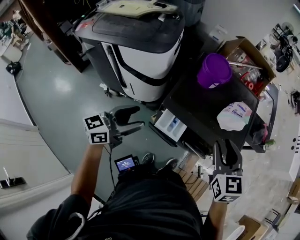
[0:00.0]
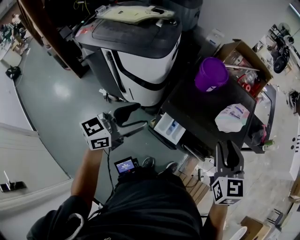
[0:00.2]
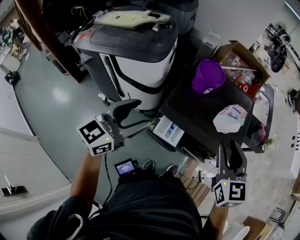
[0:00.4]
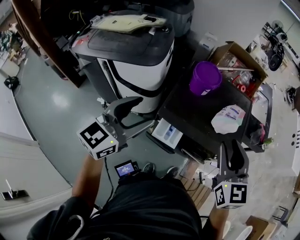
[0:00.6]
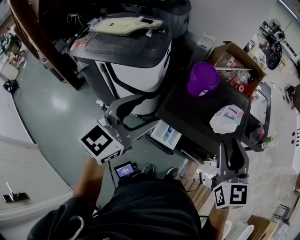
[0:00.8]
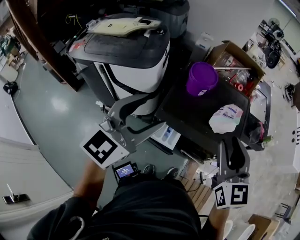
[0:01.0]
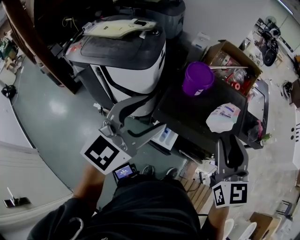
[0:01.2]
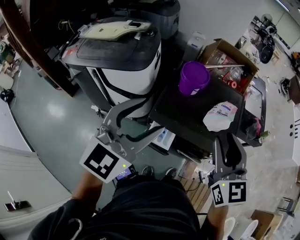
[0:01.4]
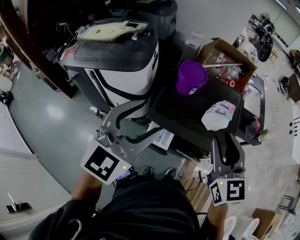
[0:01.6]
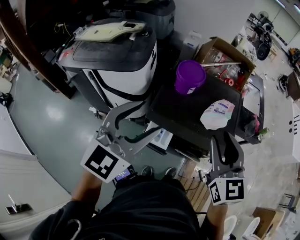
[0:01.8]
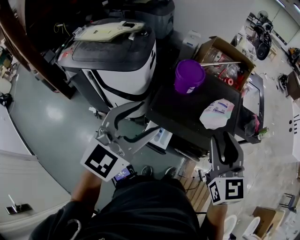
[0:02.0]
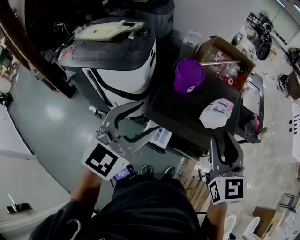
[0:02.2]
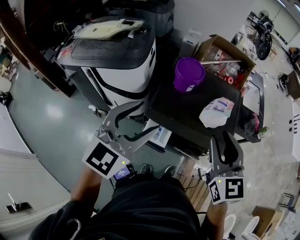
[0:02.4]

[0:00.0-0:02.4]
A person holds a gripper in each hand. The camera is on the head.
0.0 to 1.2 s: The left gripper goes some 20 cm upward and to the right, and rotates roughly 40 degrees; the right gripper shifts about 10 cm upward.
1.2 to 2.4 s: The grippers move only a little.

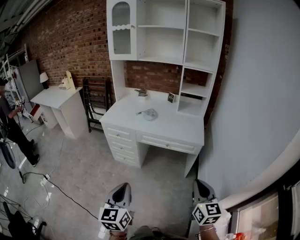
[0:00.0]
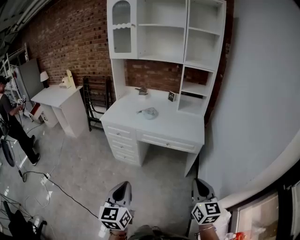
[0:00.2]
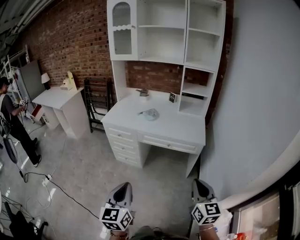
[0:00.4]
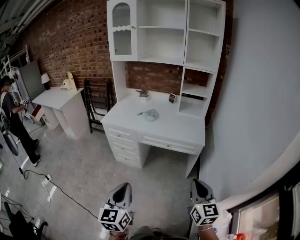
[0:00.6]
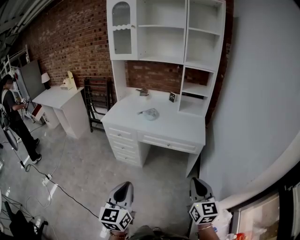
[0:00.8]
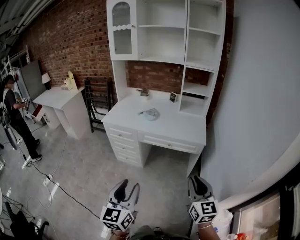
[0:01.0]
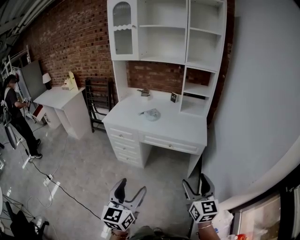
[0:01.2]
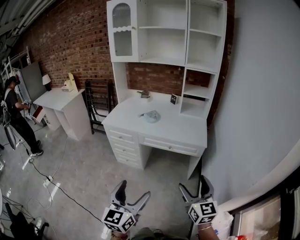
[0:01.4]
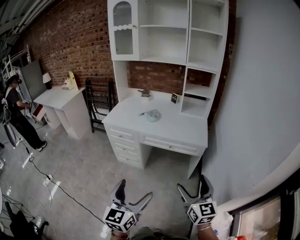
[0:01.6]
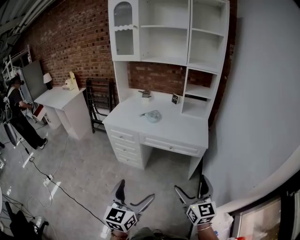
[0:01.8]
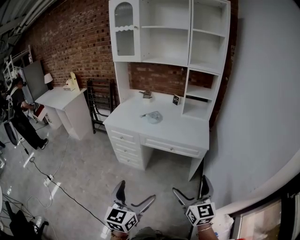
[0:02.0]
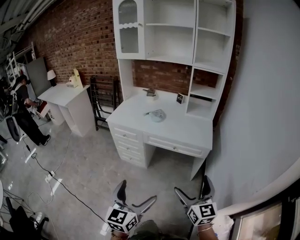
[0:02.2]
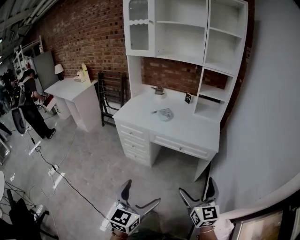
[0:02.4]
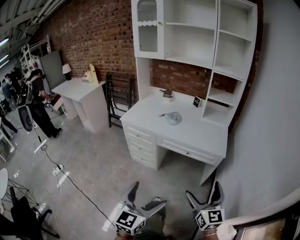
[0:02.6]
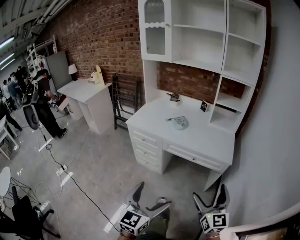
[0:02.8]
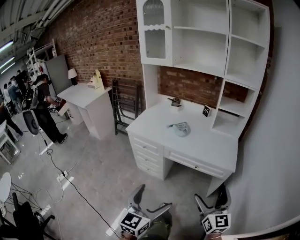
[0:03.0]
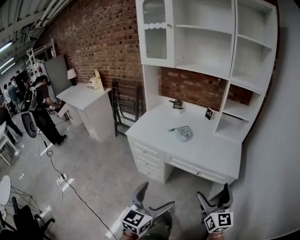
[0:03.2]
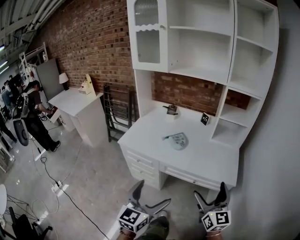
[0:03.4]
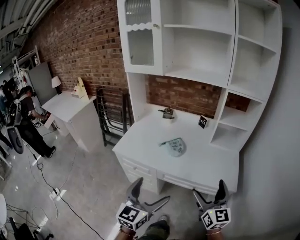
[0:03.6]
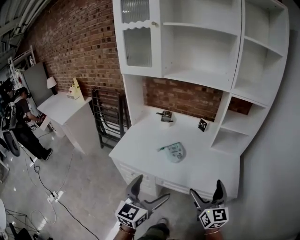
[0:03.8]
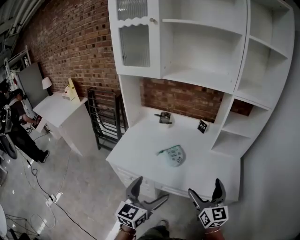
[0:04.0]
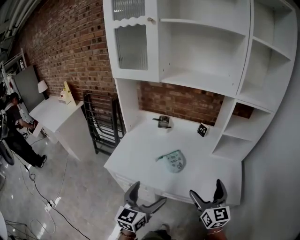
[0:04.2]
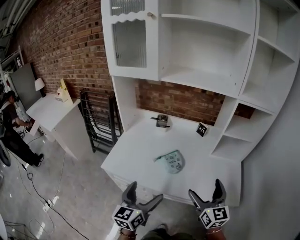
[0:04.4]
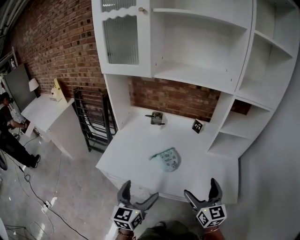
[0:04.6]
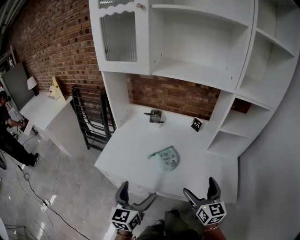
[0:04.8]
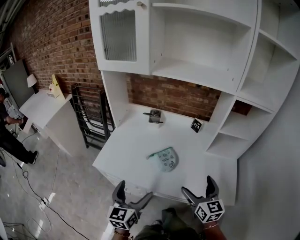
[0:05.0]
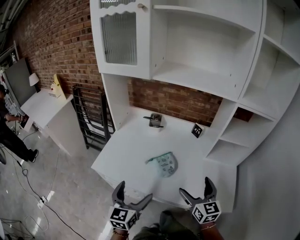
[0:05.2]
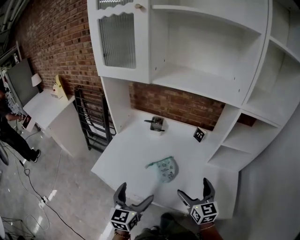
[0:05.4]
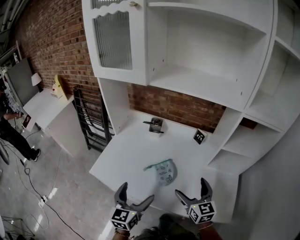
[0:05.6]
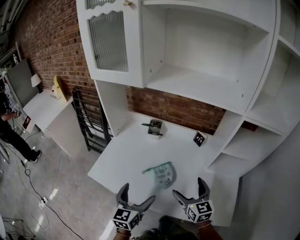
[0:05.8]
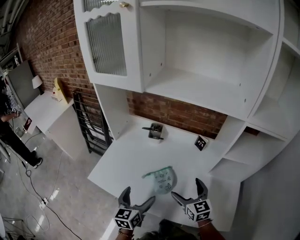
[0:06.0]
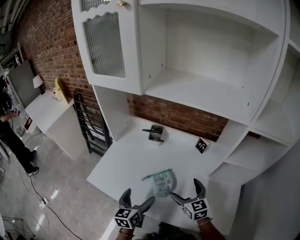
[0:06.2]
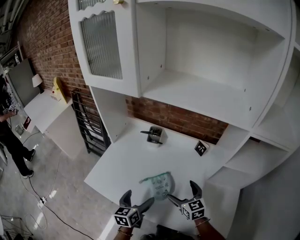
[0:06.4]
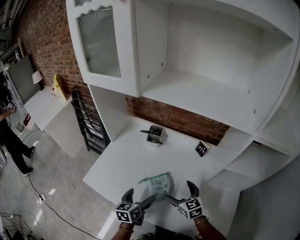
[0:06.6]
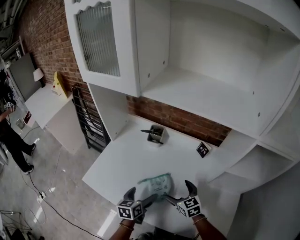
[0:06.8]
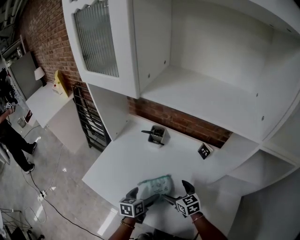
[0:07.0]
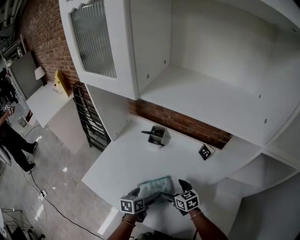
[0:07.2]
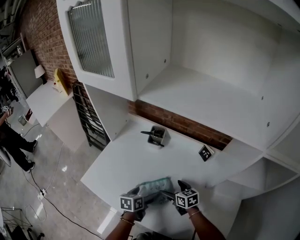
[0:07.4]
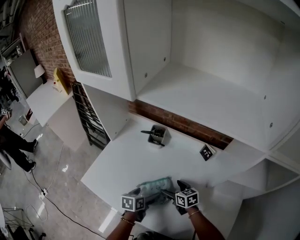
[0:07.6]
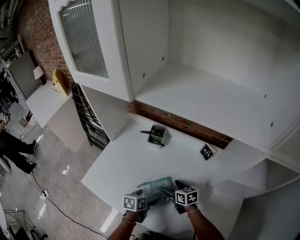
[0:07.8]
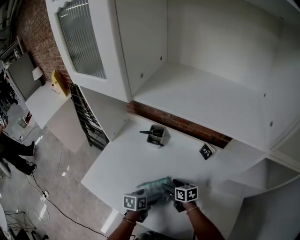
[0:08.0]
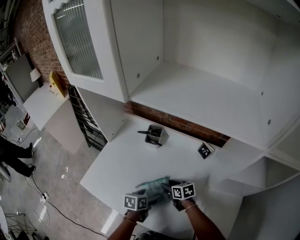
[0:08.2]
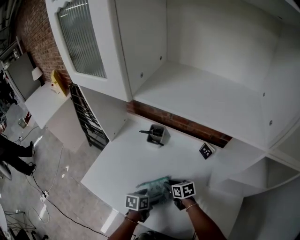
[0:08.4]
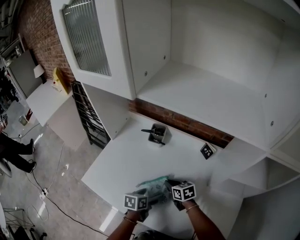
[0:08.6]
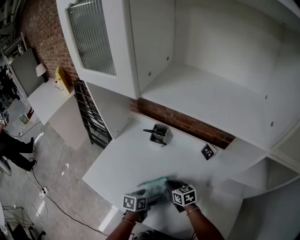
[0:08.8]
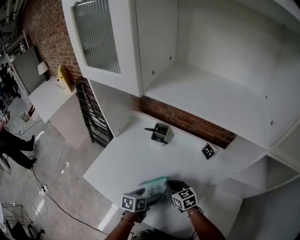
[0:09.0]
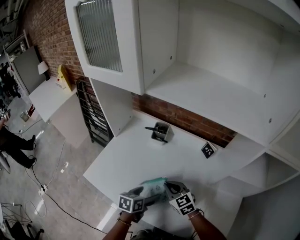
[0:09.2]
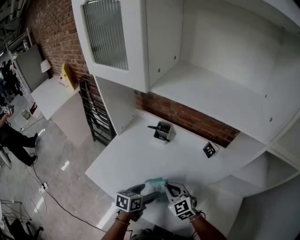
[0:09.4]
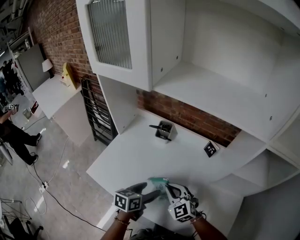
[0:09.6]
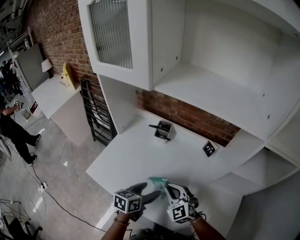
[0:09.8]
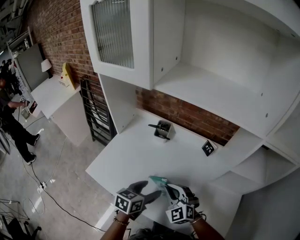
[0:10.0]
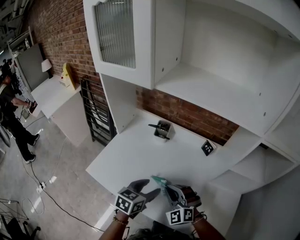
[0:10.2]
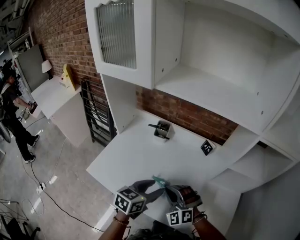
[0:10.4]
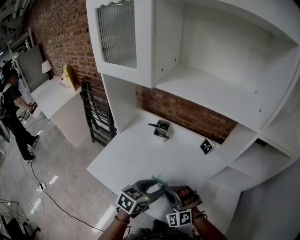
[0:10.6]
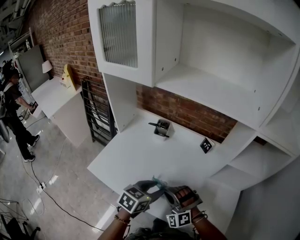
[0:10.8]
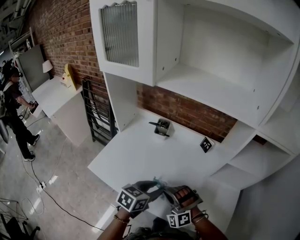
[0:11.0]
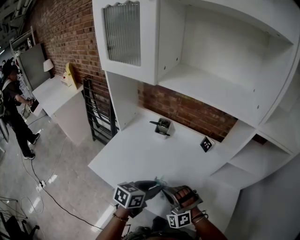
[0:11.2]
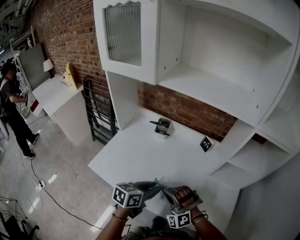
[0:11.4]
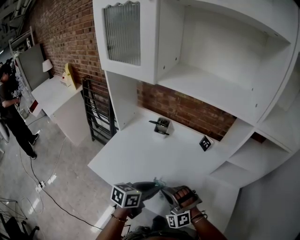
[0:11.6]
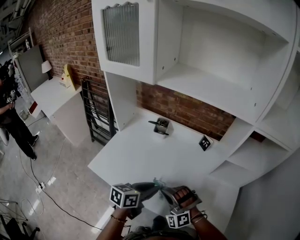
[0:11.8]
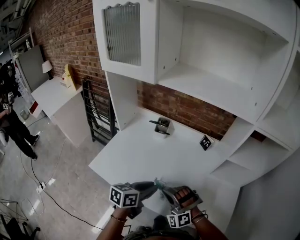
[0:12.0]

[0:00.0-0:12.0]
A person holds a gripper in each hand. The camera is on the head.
0.0 to 1.6 s: The left gripper shifts by roughly 5 cm, and opens up; the right gripper opens.
1.6 to 3.0 s: The two grippers go approximately 15 cm forward.
3.0 to 4.4 s: The grippers both shift forward by approximately 40 cm.
4.4 to 6.0 s: The two grippers go some 20 cm forward and downward. The right gripper turns by about 20 degrees.
6.0 to 7.6 s: The left gripper is displaced downward, forward and to the right by approximately 20 cm, and changes its angle by some 30 degrees. The right gripper shifts approximately 20 cm downward and forward, and rotates about 30 degrees.
7.6 to 9.0 s: The right gripper shifts by some 5 cm, and closes its fingers.
9.0 to 10.4 s: The right gripper heads backward and upward, covering some 15 cm, and twists approximately 70 degrees counterclockwise, seen from behind, while the left gripper moves upward, about 15 cm, rotates approximately 30 degrees, and closes its fingers.
10.4 to 12.0 s: The right gripper moves backward, approximately 5 cm.

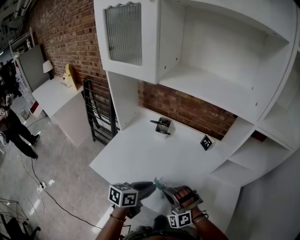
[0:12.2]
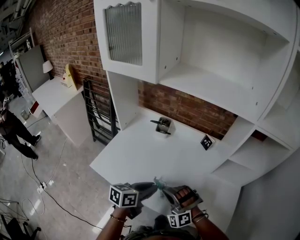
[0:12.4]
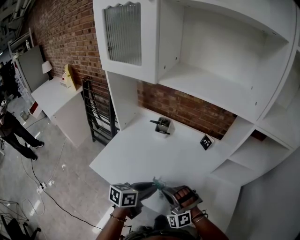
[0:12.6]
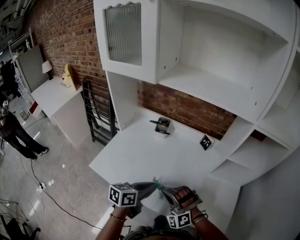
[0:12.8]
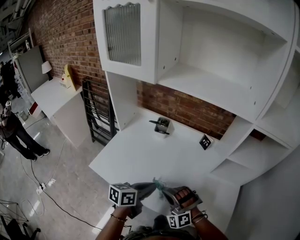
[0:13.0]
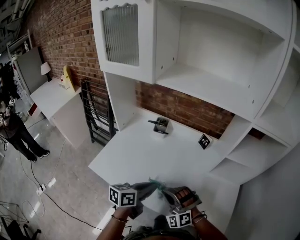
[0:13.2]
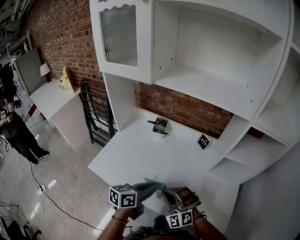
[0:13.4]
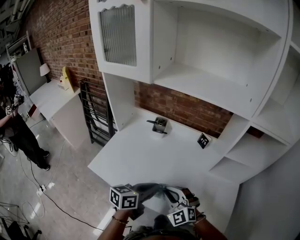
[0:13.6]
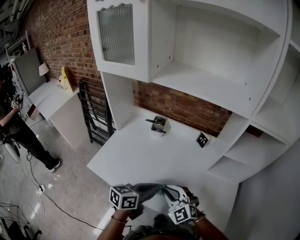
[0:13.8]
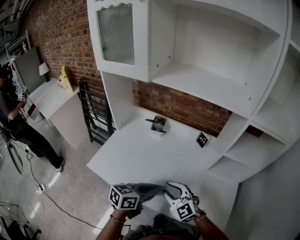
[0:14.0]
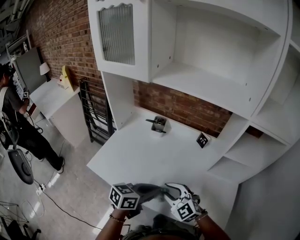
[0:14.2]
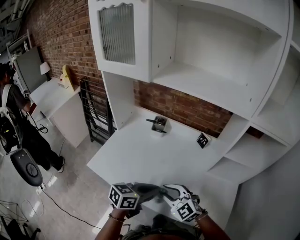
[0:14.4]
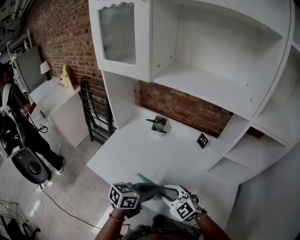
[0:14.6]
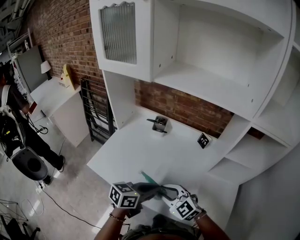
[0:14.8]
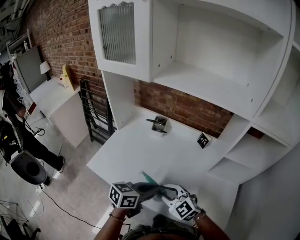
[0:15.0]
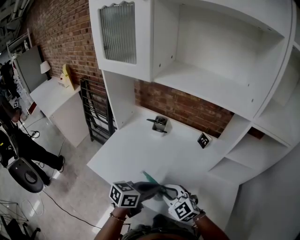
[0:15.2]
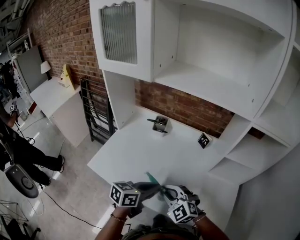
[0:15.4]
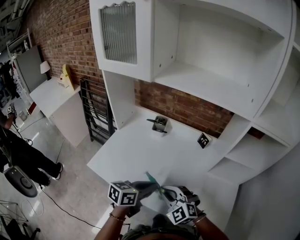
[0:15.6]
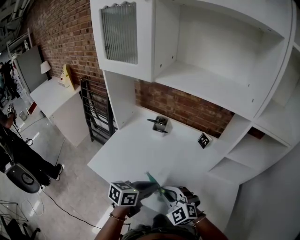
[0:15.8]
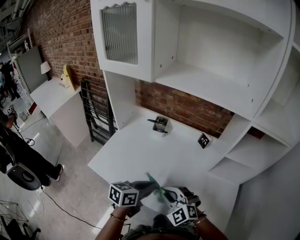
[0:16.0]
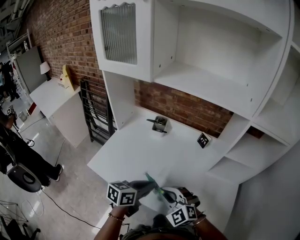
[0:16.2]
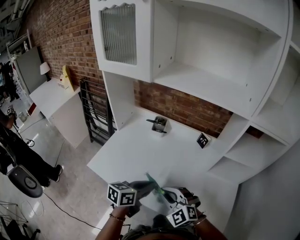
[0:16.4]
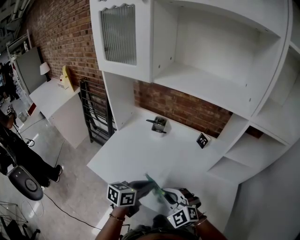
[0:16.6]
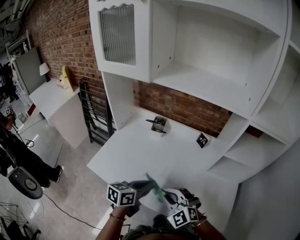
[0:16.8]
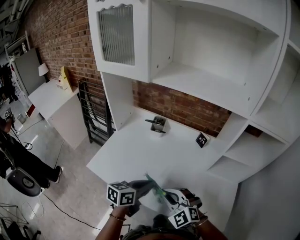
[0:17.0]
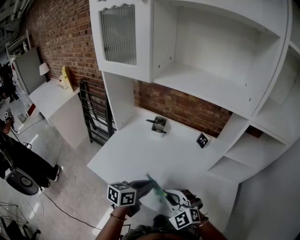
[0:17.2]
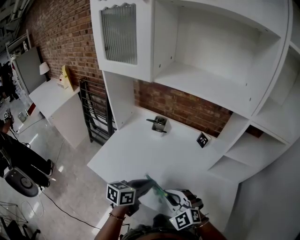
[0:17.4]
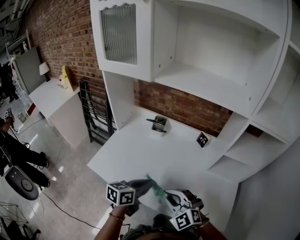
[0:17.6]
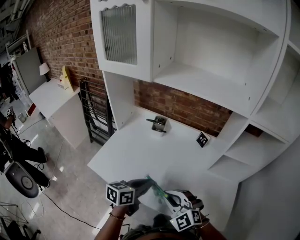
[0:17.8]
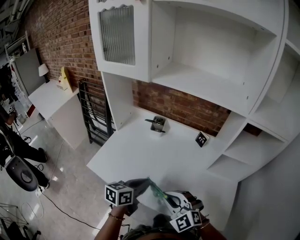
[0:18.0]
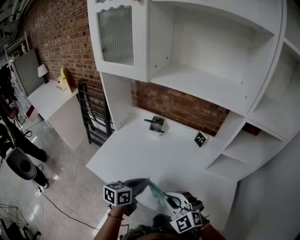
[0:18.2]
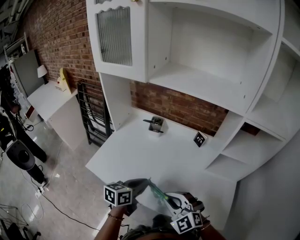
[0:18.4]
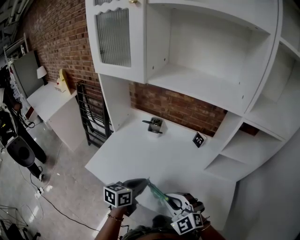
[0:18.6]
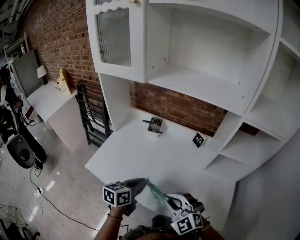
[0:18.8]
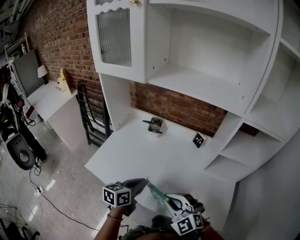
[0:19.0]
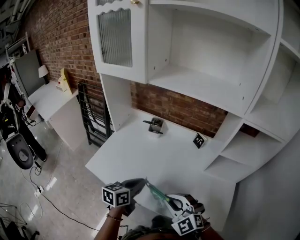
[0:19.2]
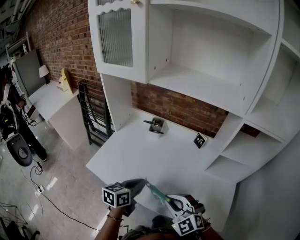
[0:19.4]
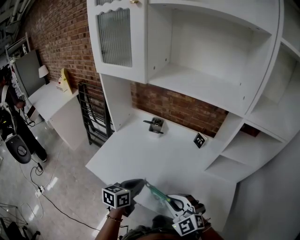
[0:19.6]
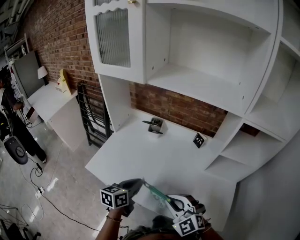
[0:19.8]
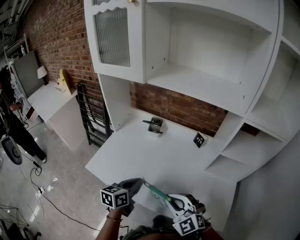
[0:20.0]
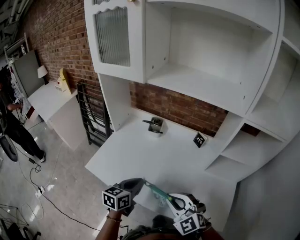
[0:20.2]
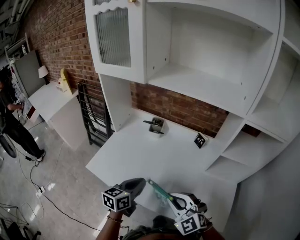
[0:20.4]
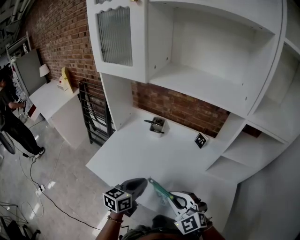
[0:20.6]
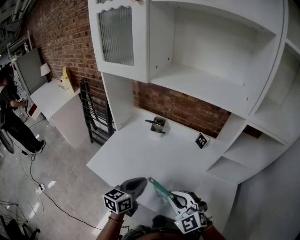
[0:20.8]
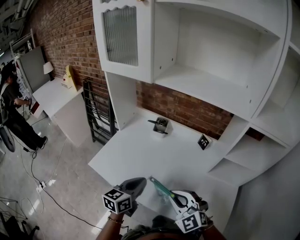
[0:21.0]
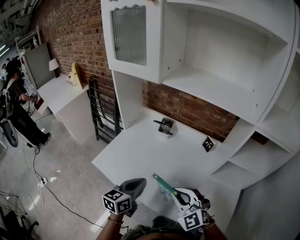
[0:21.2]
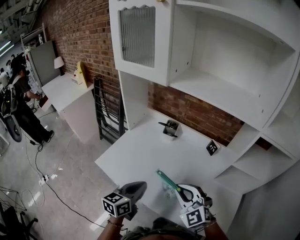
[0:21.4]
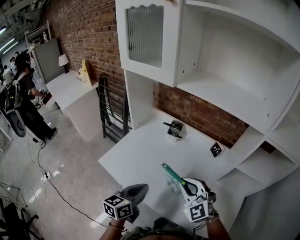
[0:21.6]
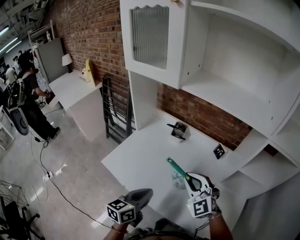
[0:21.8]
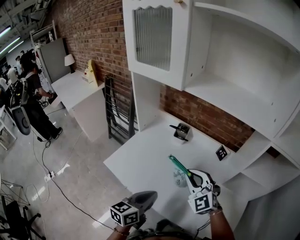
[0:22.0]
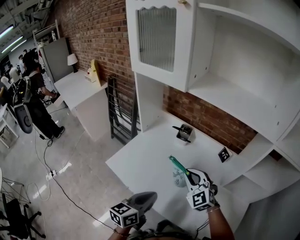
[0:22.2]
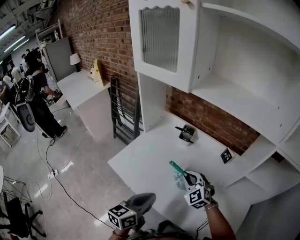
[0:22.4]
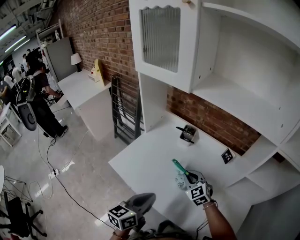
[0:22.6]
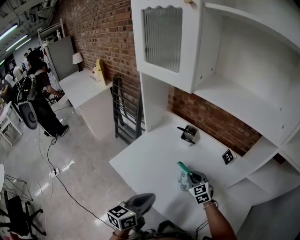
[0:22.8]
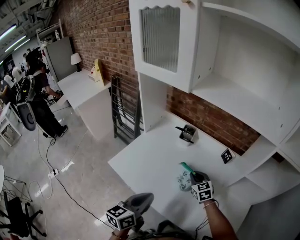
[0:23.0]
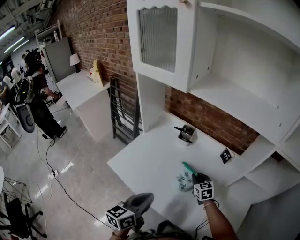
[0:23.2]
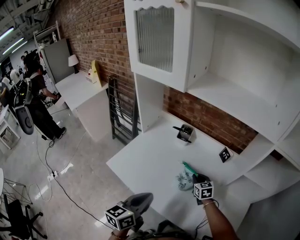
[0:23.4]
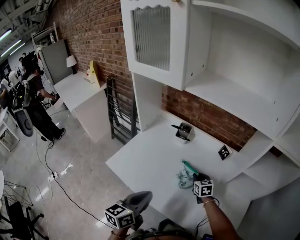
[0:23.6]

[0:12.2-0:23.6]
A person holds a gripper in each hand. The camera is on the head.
12.2 to 13.6 s: The right gripper swivels some 40 degrees.
13.6 to 15.0 s: The right gripper swivels approximately 20 degrees.
15.0 to 17.8 s: There are only small adjustments of the grippers.
17.8 to 20.8 s: There are only small adjustments of the grippers.
20.8 to 22.2 s: The right gripper travels forward by roughly 15 cm. The left gripper moves some 5 cm.
22.2 to 23.6 s: The right gripper is displaced downward and to the right by about 20 cm, and rolls clockwise, seen from behind, by approximately 50 degrees.
